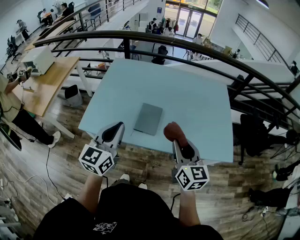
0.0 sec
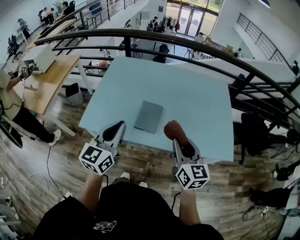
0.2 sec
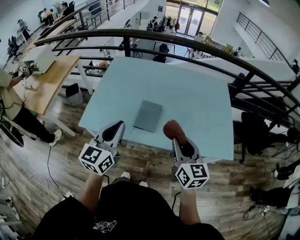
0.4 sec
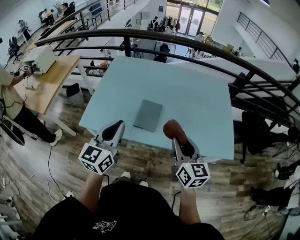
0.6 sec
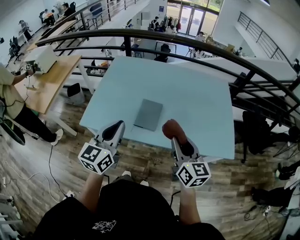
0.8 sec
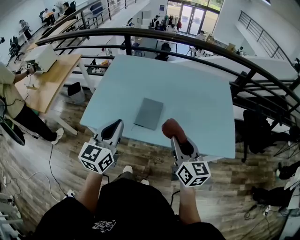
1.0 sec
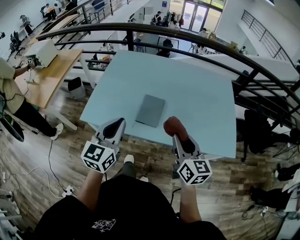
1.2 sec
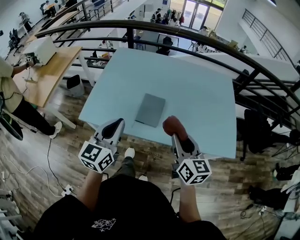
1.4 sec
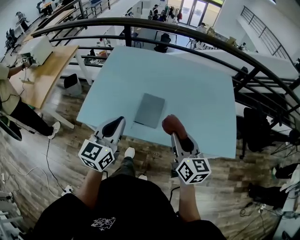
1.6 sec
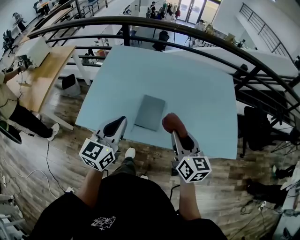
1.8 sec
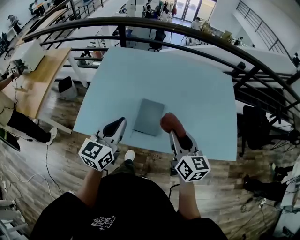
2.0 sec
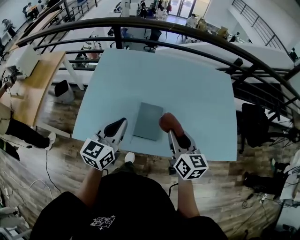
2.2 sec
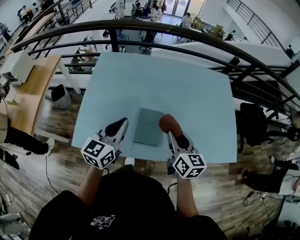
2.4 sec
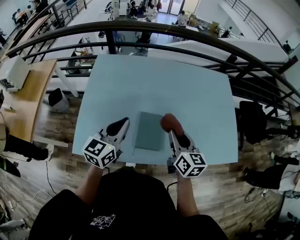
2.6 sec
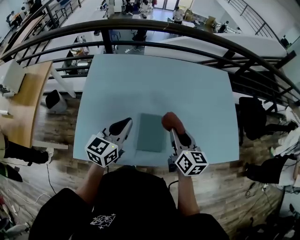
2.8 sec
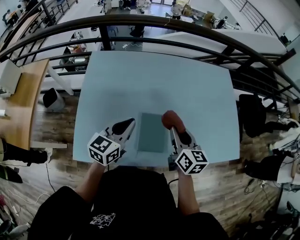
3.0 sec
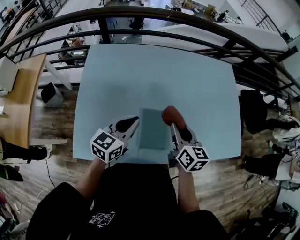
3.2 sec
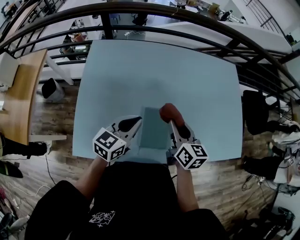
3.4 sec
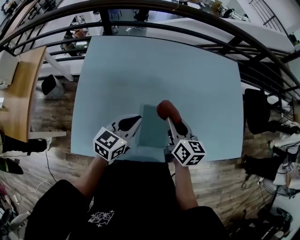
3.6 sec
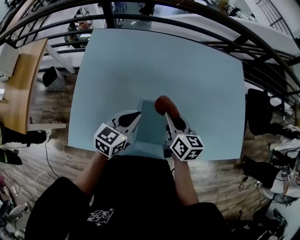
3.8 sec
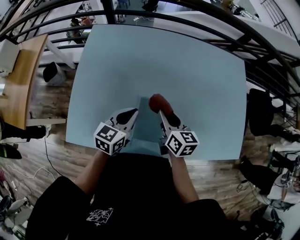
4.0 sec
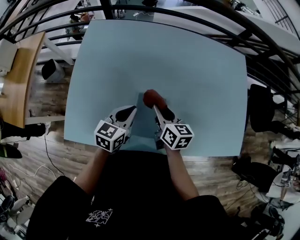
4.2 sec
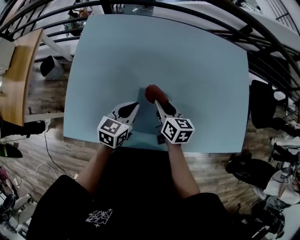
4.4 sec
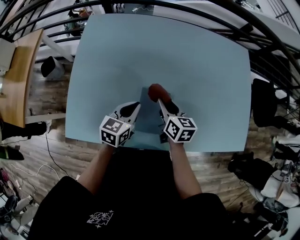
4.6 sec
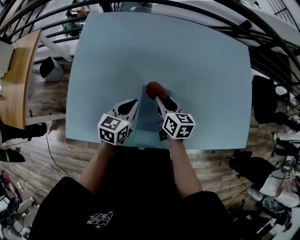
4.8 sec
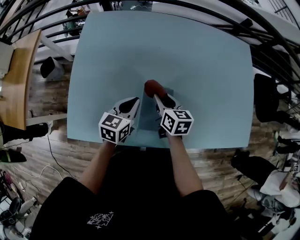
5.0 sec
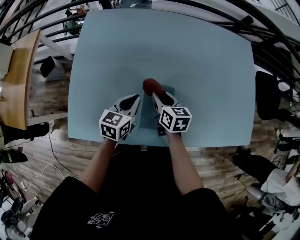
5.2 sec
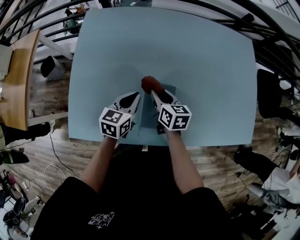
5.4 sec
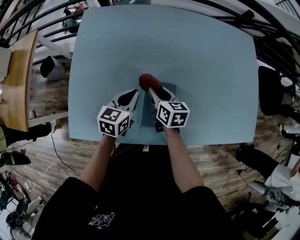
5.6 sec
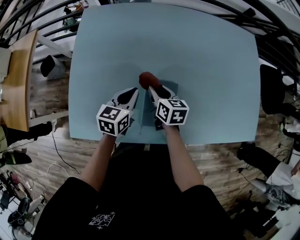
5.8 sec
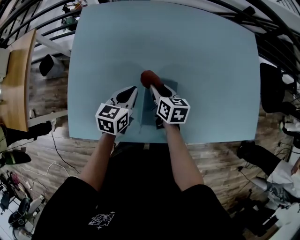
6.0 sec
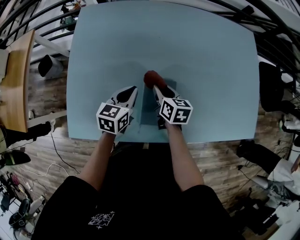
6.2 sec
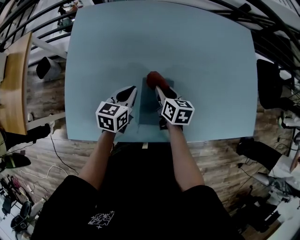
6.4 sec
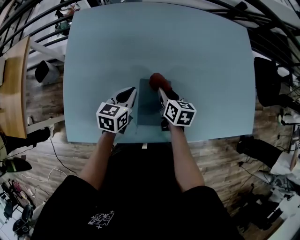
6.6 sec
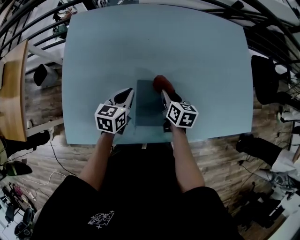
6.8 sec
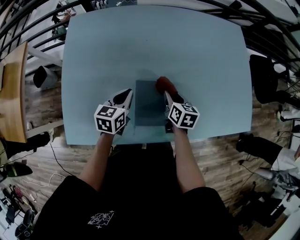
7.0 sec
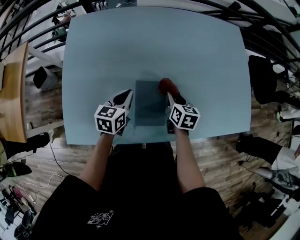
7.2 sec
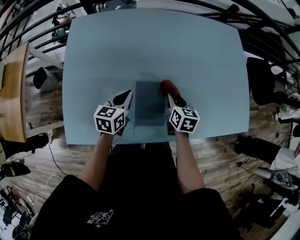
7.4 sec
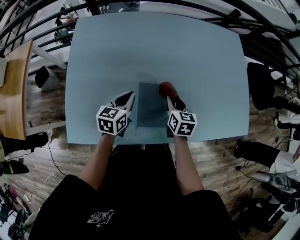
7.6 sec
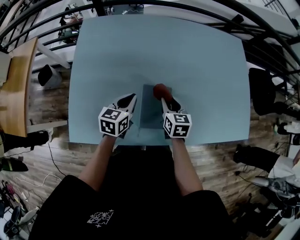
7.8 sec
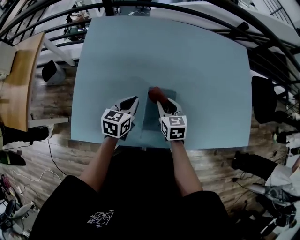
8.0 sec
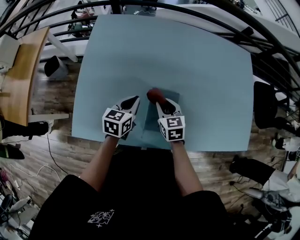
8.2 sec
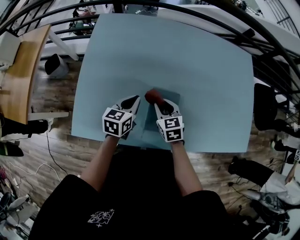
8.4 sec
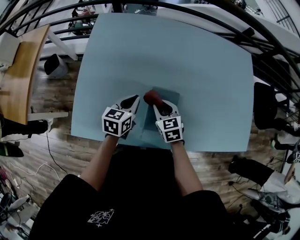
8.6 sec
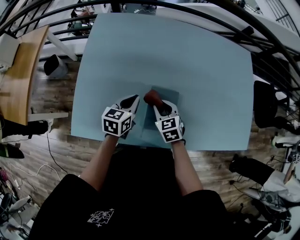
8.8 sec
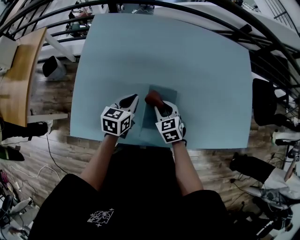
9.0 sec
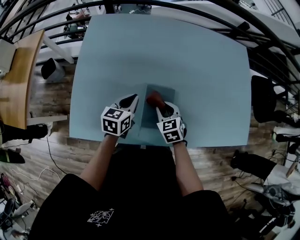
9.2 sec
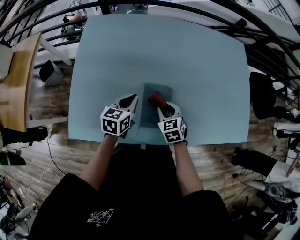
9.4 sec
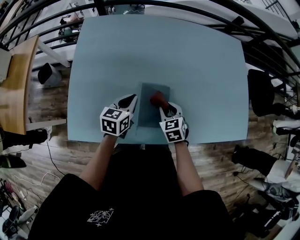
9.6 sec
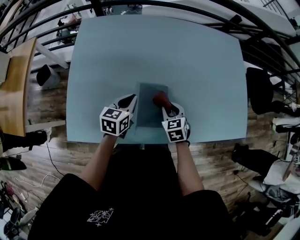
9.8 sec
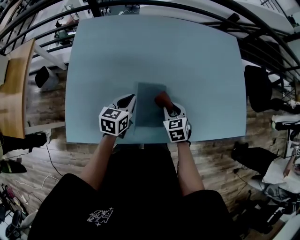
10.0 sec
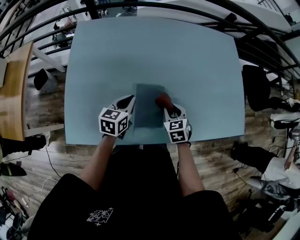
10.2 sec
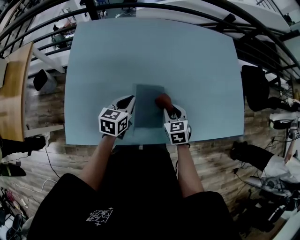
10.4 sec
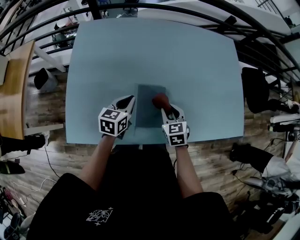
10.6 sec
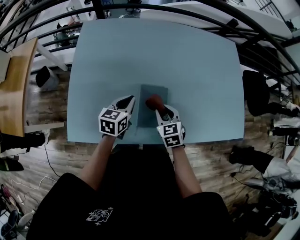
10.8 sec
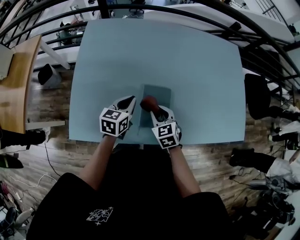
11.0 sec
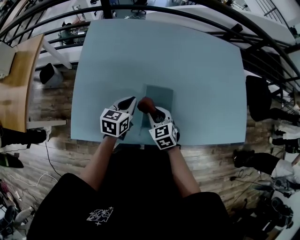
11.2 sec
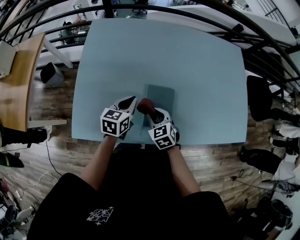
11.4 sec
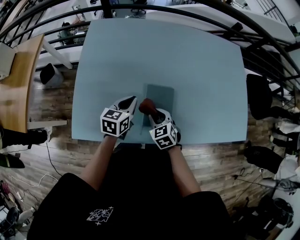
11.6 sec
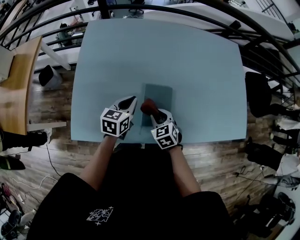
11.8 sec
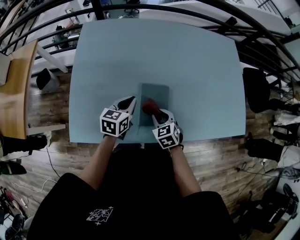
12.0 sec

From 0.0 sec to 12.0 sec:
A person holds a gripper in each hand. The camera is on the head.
From 0.0 sec to 1.6 sec: There are only small adjustments of the grippers.
From 1.6 sec to 3.0 sec: The right gripper goes about 20 cm forward and to the left; the left gripper heads forward, covering roughly 20 cm, and changes its angle by approximately 30 degrees.
From 3.0 sec to 4.4 sec: The left gripper is displaced downward by about 15 cm. The right gripper moves downward and forward, some 15 cm.
From 4.4 sec to 6.0 sec: The right gripper goes roughly 10 cm downward and to the left. Meanwhile the left gripper shifts roughly 5 cm to the left.
From 6.0 sec to 7.6 sec: The right gripper moves to the right, about 10 cm.
From 7.6 sec to 9.0 sec: The right gripper is displaced to the left by about 10 cm, and turns by some 40 degrees.
From 9.0 sec to 10.4 sec: The right gripper heads to the right, covering approximately 10 cm.
From 10.4 sec to 12.0 sec: The right gripper goes about 10 cm to the left.

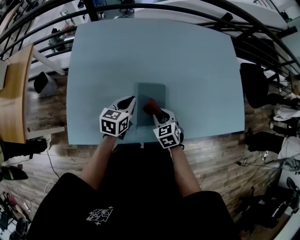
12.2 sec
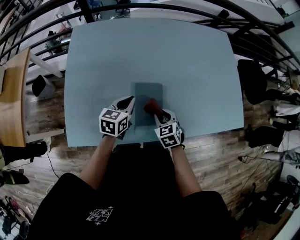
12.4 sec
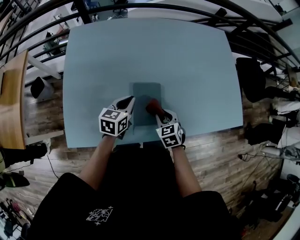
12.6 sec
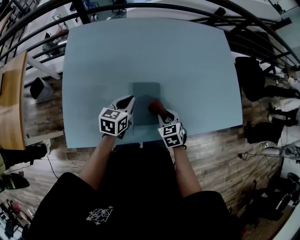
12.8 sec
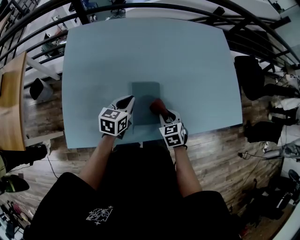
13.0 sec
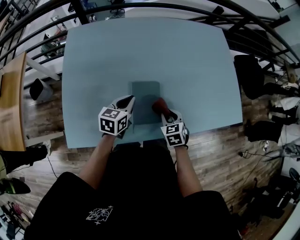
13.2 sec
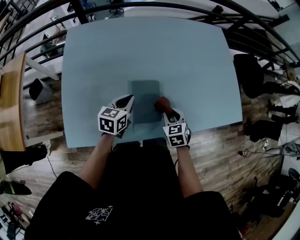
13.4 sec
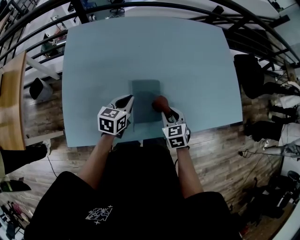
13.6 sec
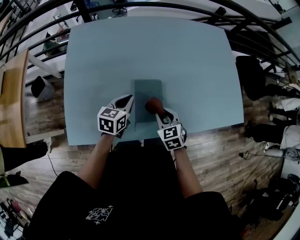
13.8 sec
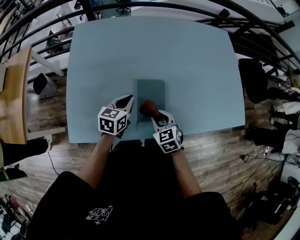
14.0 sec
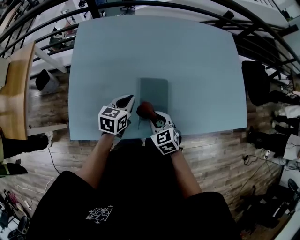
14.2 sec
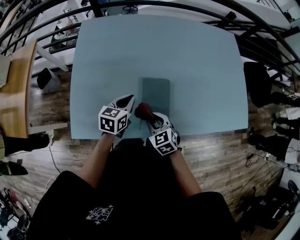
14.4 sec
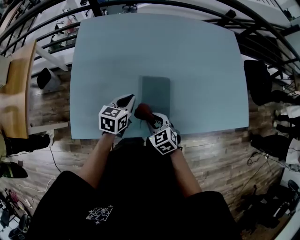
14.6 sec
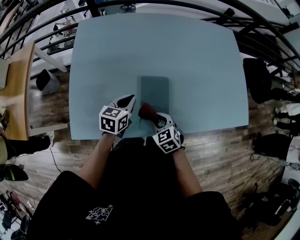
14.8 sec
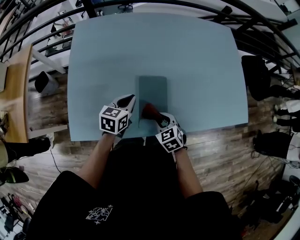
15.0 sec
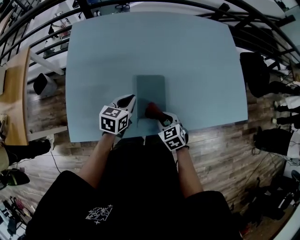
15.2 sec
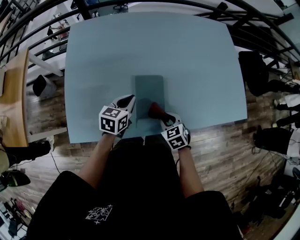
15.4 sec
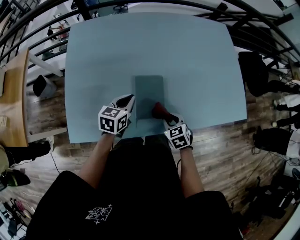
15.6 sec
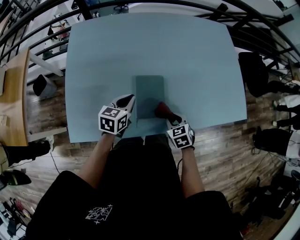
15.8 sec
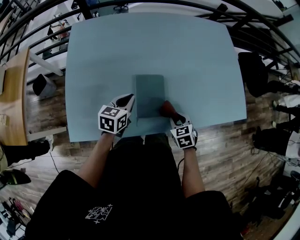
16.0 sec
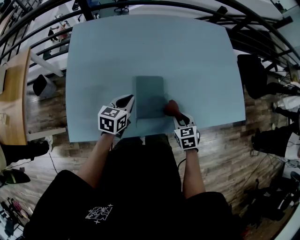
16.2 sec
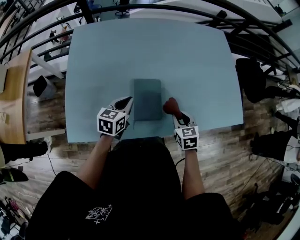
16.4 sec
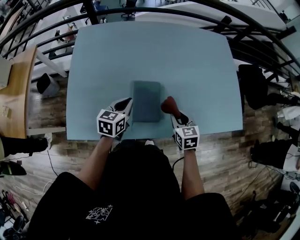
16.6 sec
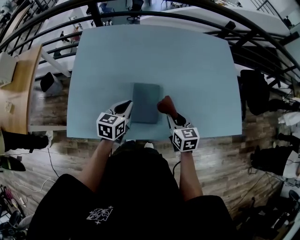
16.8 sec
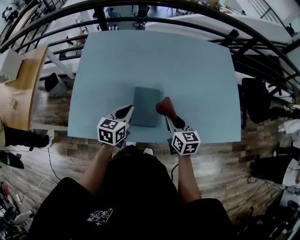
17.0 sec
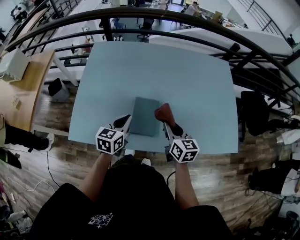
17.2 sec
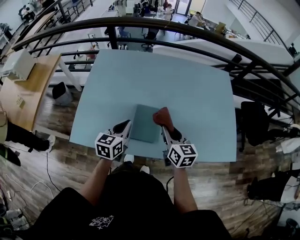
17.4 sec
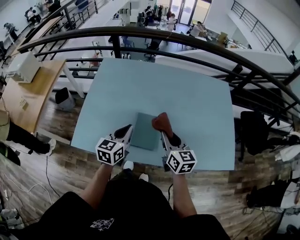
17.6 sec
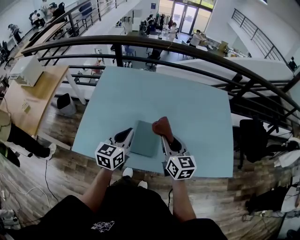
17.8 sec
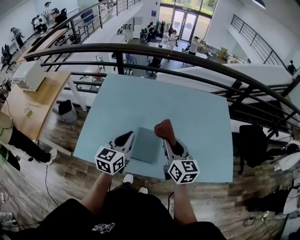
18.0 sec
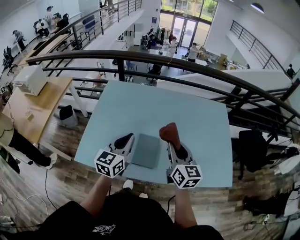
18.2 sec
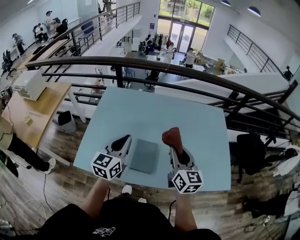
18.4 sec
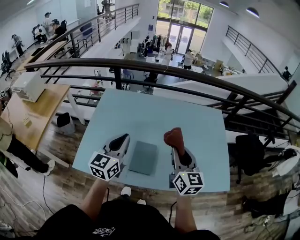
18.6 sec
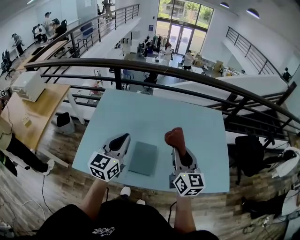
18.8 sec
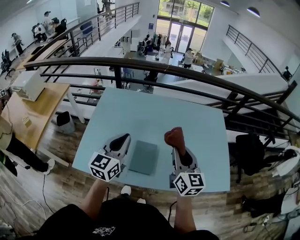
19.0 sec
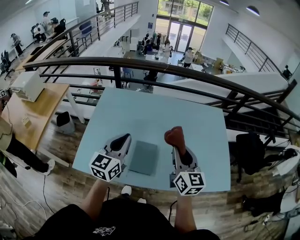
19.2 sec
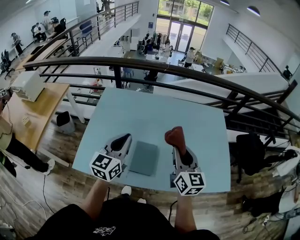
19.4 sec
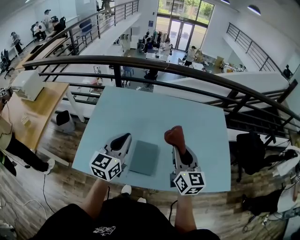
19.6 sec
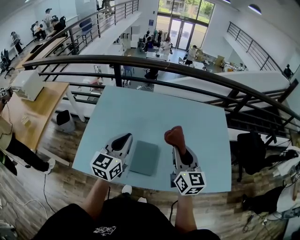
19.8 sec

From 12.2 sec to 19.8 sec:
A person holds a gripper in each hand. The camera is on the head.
From 12.2 sec to 13.8 sec: The right gripper moves about 10 cm to the right and comes back.
From 13.8 sec to 15.2 sec: The right gripper goes to the left and returns, roughly 10 cm each way.
From 15.2 sec to 16.8 sec: The left gripper travels upward by some 5 cm. Meanwhile the right gripper heads upward, to the right and forward, covering roughly 15 cm, and swivels roughly 30 degrees.
From 16.8 sec to 18.2 sec: The grippers both shift upward by roughly 25 cm. The right gripper changes its angle by approximately 30 degrees. Meanwhile the left gripper turns by some 30 degrees.
From 18.2 sec to 19.8 sec: The grippers stay close to where they were, moving slightly.

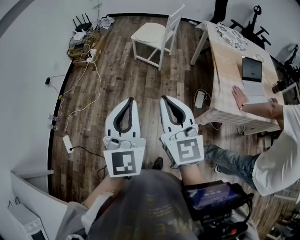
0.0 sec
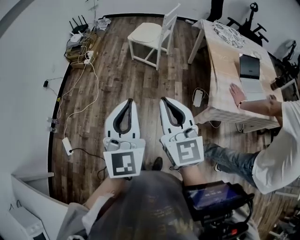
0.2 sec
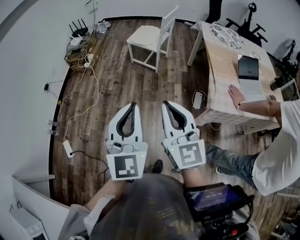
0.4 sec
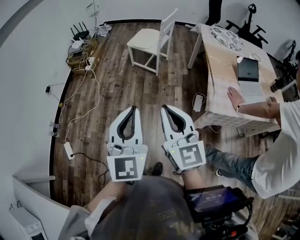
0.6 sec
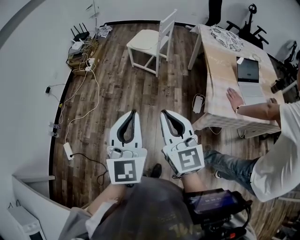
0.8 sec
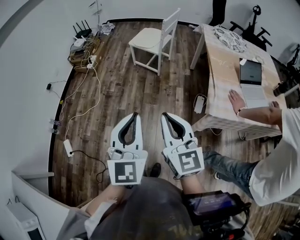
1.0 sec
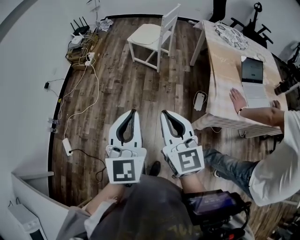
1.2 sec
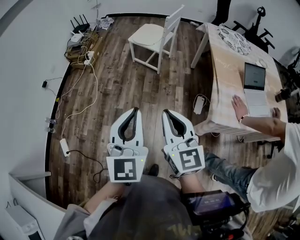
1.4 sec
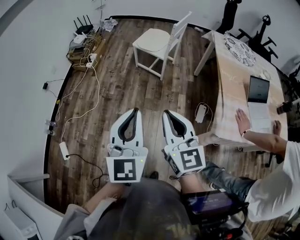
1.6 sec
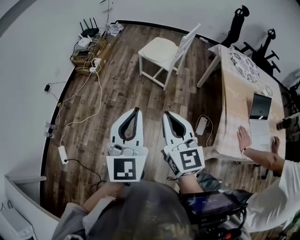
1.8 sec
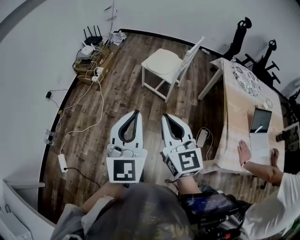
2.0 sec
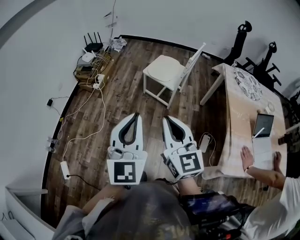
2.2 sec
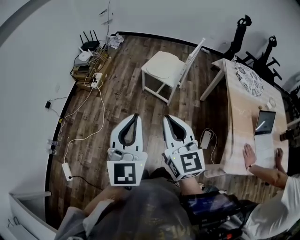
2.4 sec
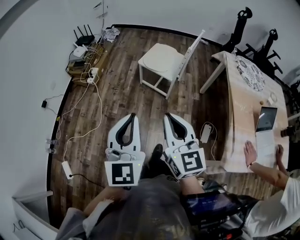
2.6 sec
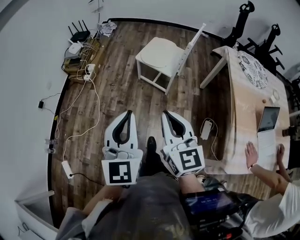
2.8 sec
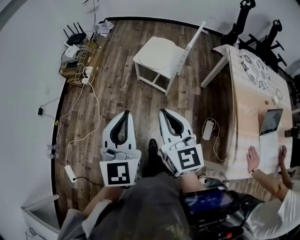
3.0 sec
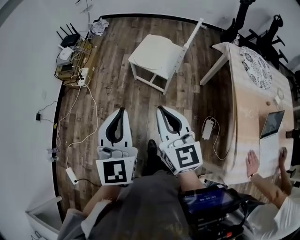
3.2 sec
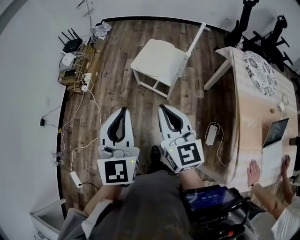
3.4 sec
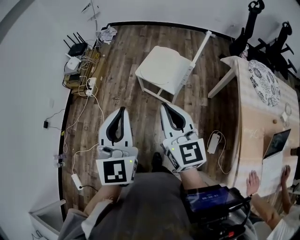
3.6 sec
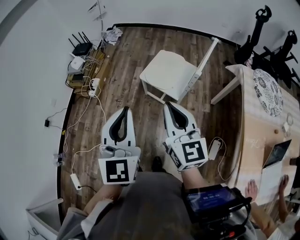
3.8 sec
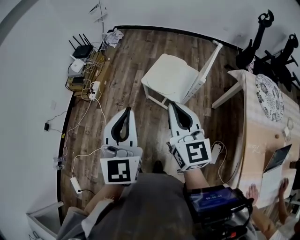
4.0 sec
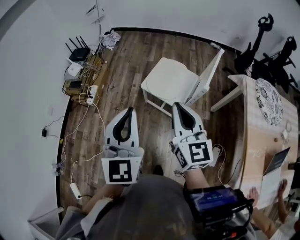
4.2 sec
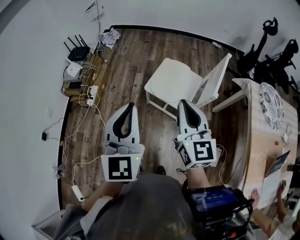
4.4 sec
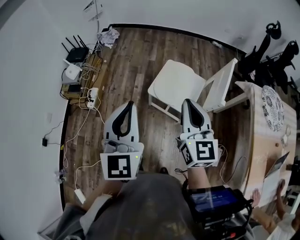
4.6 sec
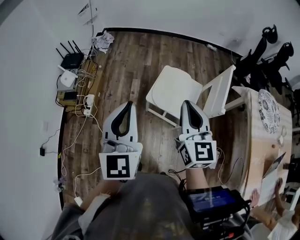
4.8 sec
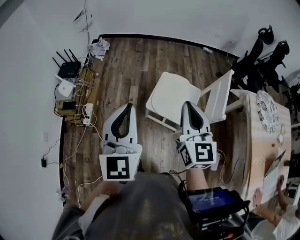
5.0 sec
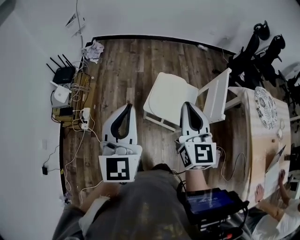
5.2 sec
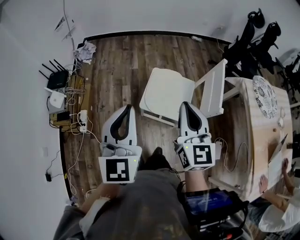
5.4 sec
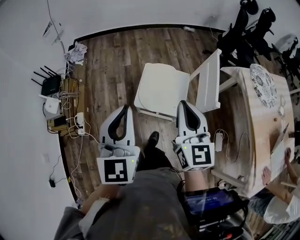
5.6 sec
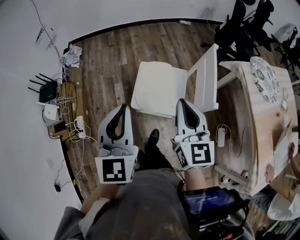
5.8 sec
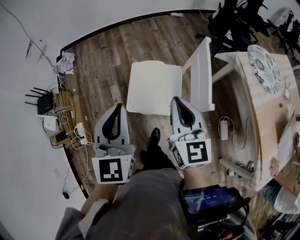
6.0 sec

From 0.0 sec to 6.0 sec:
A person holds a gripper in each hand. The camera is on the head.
From 0.0 sec to 1.6 sec: The right gripper heads forward and downward, covering some 10 cm; the left gripper heads forward, covering roughly 10 cm.
From 1.6 sec to 3.0 sec: The two grippers go some 30 cm forward.
From 3.0 sec to 4.4 sec: Both grippers move forward, roughly 30 cm.
From 4.4 sec to 6.0 sec: The two grippers go some 20 cm forward. The right gripper changes its angle by approximately 30 degrees. The left gripper changes its angle by approximately 30 degrees.
